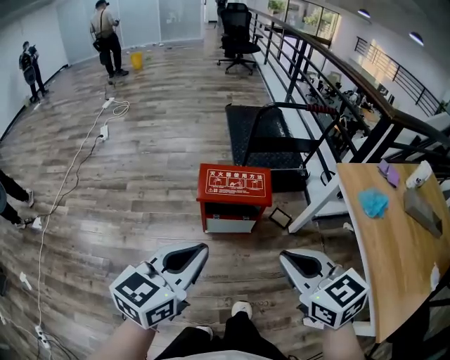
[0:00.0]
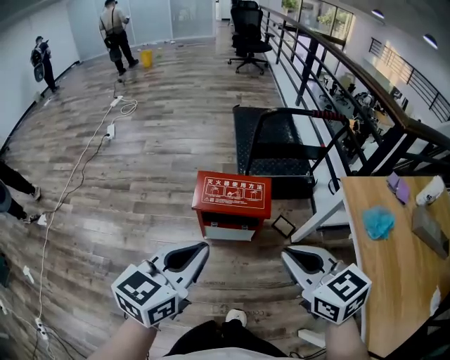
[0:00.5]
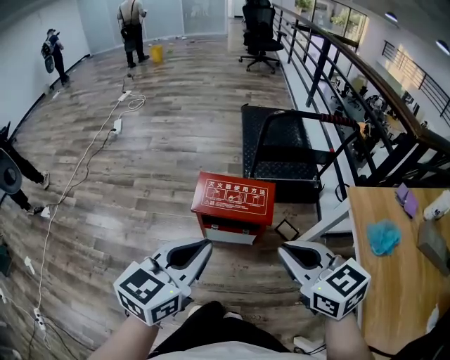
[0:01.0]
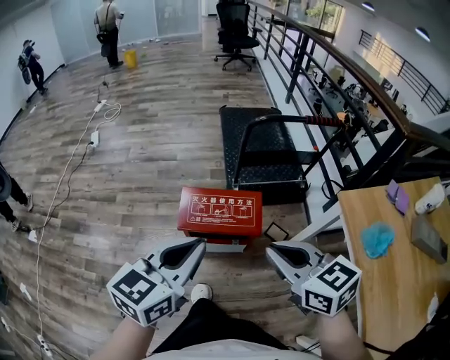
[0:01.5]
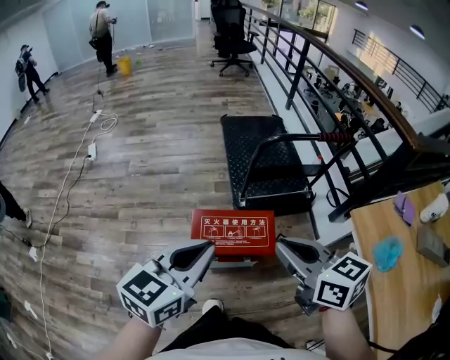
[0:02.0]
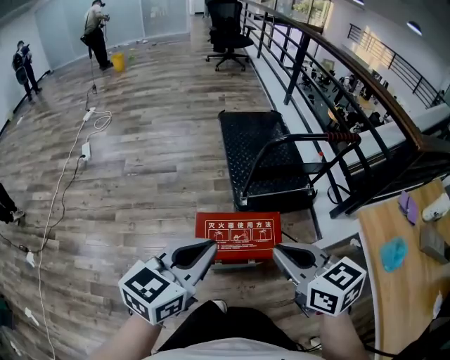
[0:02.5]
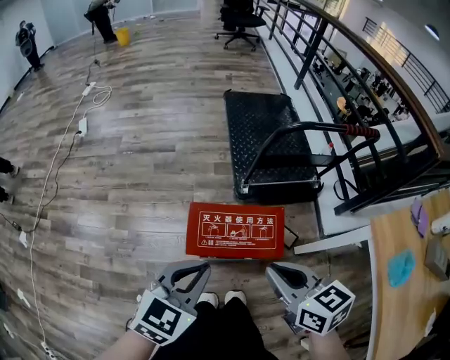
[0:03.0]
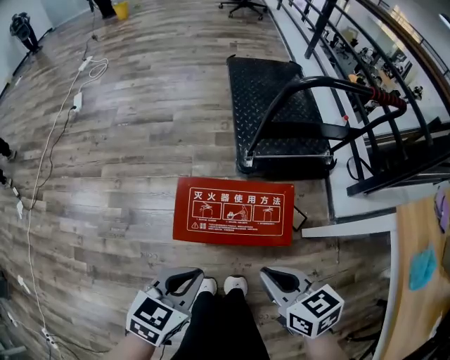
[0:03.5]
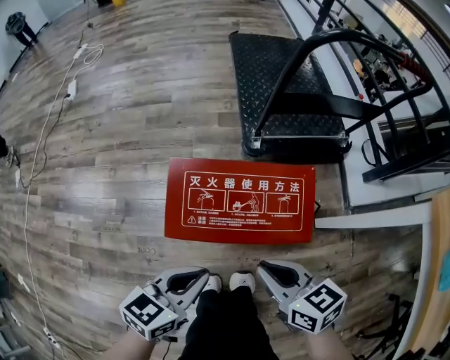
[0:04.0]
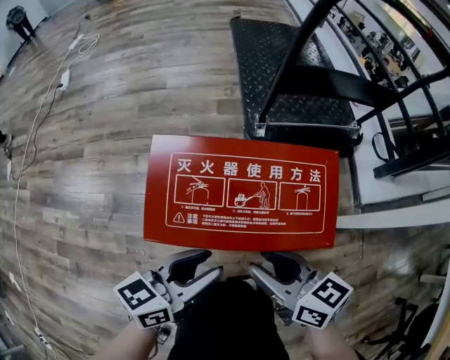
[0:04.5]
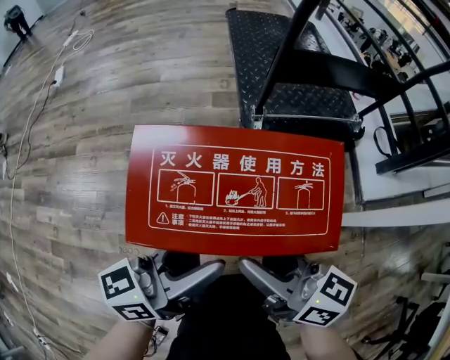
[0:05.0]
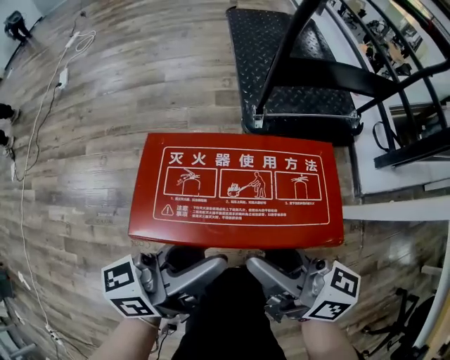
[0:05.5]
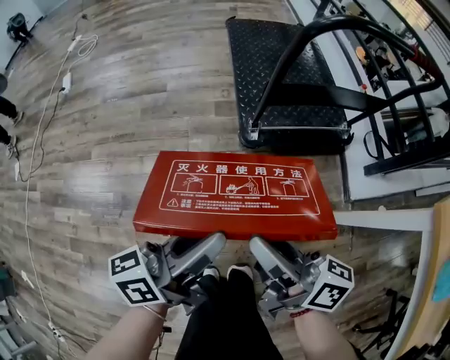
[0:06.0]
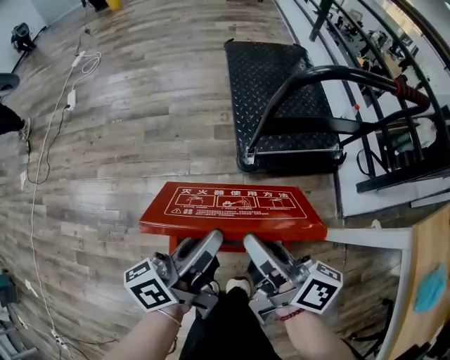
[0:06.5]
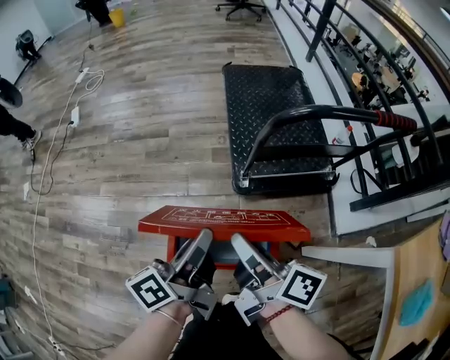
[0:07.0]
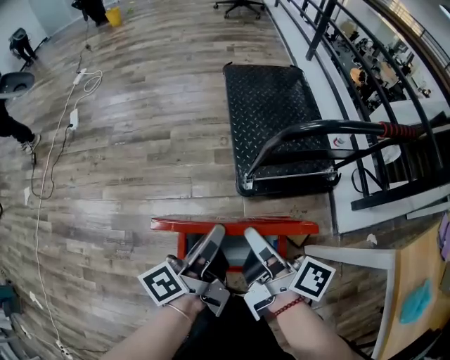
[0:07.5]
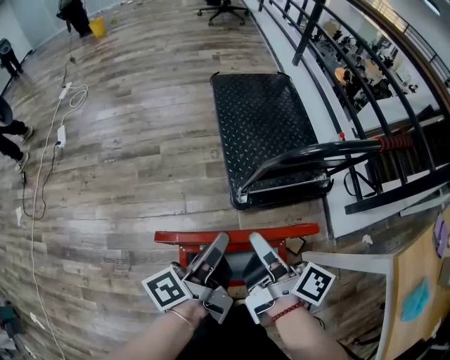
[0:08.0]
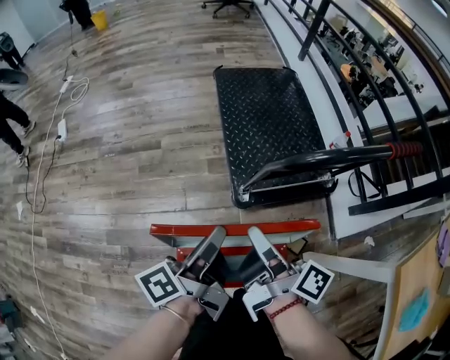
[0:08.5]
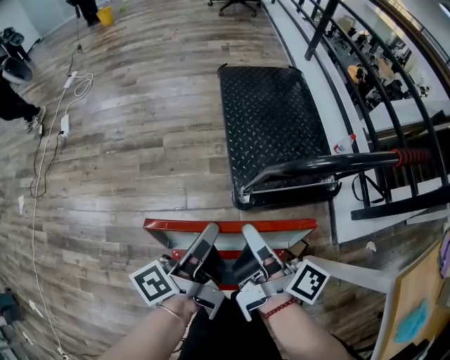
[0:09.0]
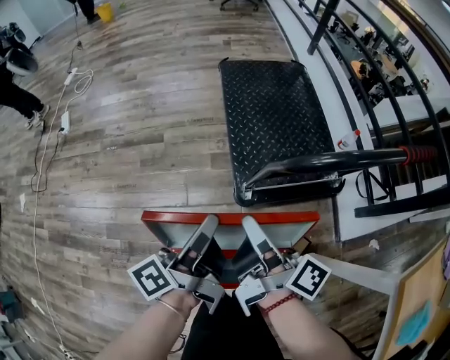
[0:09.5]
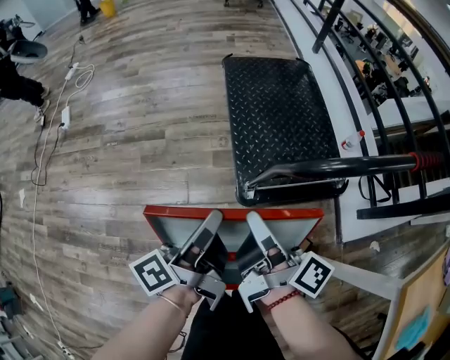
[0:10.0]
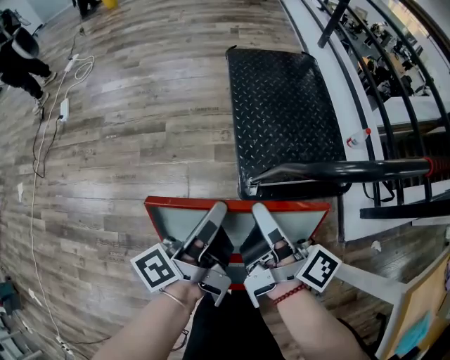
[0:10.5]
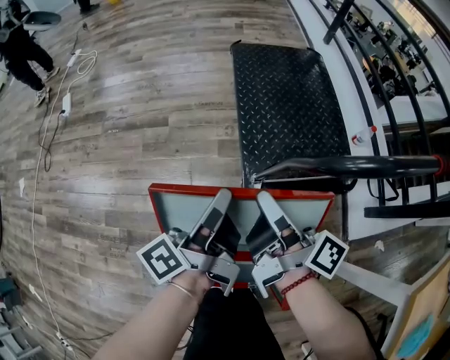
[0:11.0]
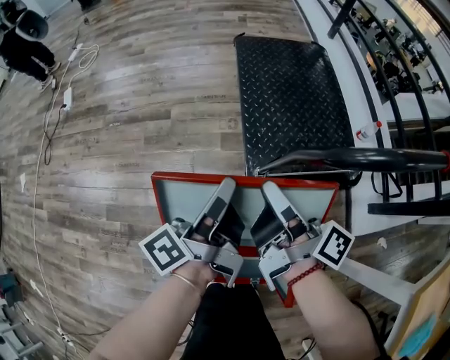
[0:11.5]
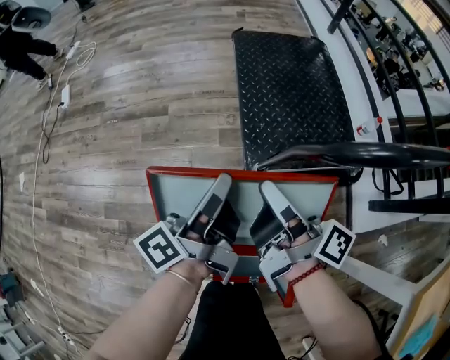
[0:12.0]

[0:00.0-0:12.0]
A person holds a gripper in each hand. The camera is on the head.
0:00.0 to 0:02.0: Both grippers travel together forward, some 25 cm.
0:02.0 to 0:04.0: Both grippers move downward, some 35 cm. The left gripper turns by about 20 degrees.
0:04.0 to 0:06.0: Both grippers move forward and upward, about 15 cm. The left gripper turns by roughly 40 degrees, and opens, then closes again, while the right gripper tips its fingers upward by approximately 30 degrees.
0:06.0 to 0:08.0: Both grippers move forward and upward, roughly 15 cm. The left gripper changes its angle by about 30 degrees; the right gripper changes its angle by approximately 30 degrees.
0:08.0 to 0:10.0: Both grippers travel together forward, about 10 cm.
0:10.0 to 0:12.0: The left gripper ends up some 5 cm from where it was. The right gripper ends up about 5 cm from where it was.

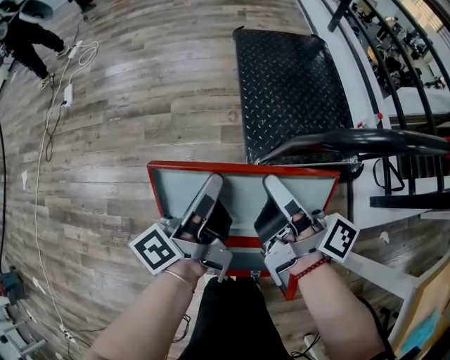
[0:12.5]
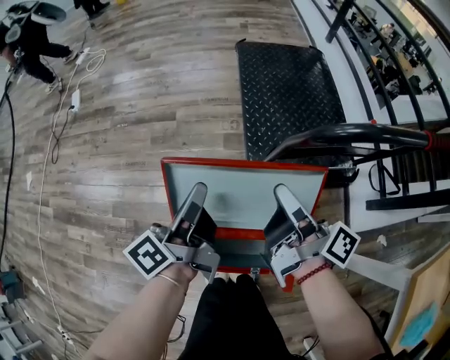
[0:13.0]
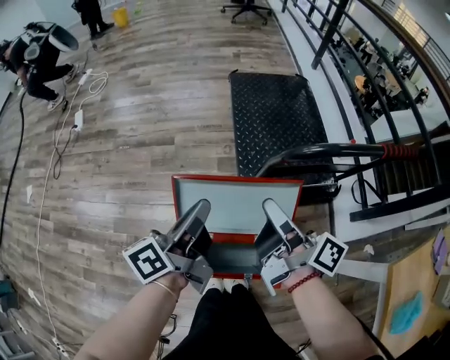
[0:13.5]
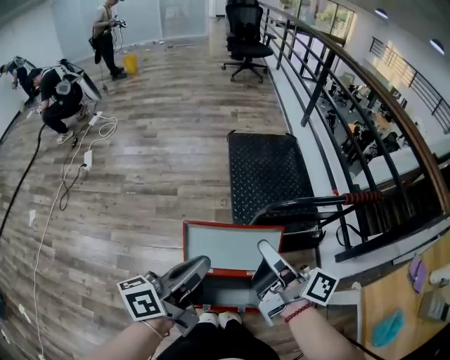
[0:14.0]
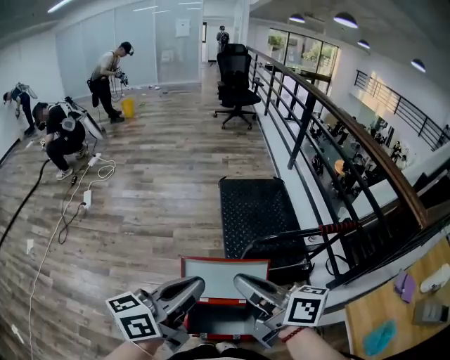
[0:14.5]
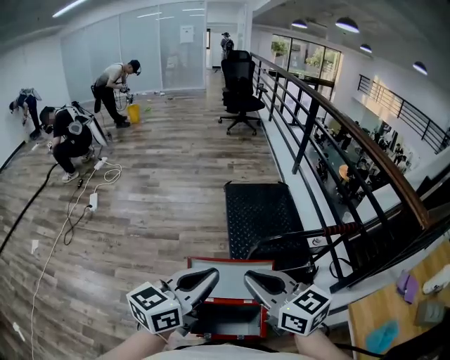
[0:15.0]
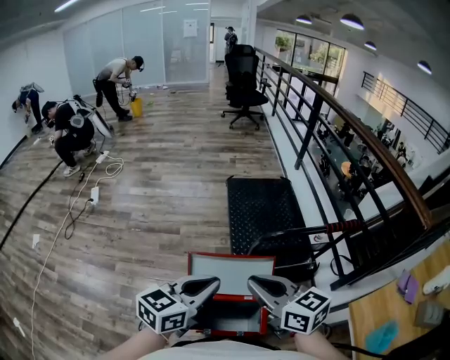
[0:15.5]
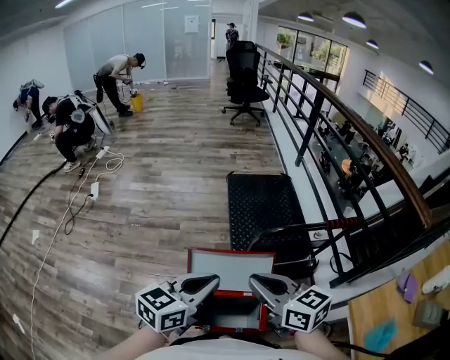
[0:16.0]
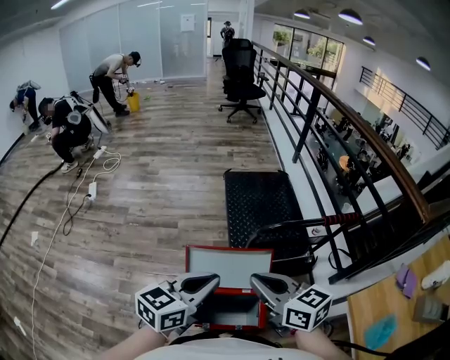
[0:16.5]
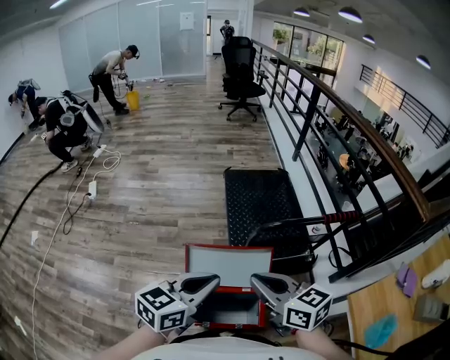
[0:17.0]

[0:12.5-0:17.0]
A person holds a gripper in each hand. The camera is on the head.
0:12.5 to 0:14.5: Both grippers travel together upward and backward, about 35 cm. The right gripper rotates approximately 40 degrees; the left gripper turns by approximately 40 degrees.
0:14.5 to 0:17.0: Both grippers move downward, roughly 5 cm. The left gripper rotates approximately 30 degrees. Meanwhile the right gripper turns by approximately 30 degrees.

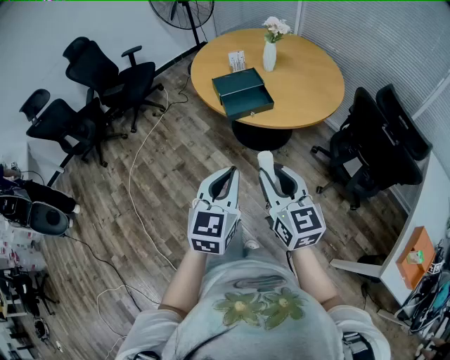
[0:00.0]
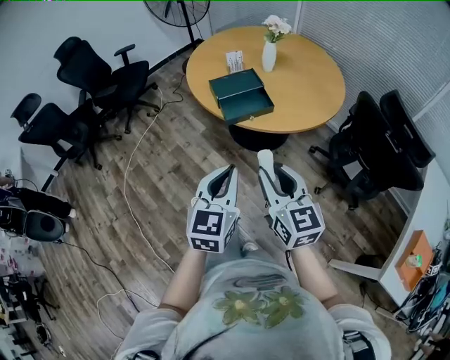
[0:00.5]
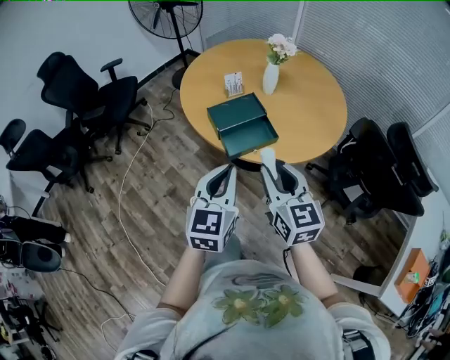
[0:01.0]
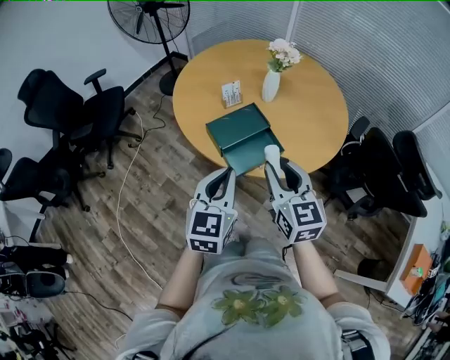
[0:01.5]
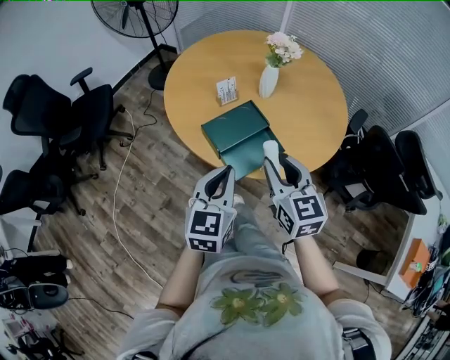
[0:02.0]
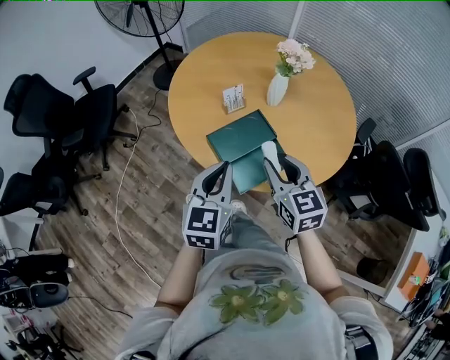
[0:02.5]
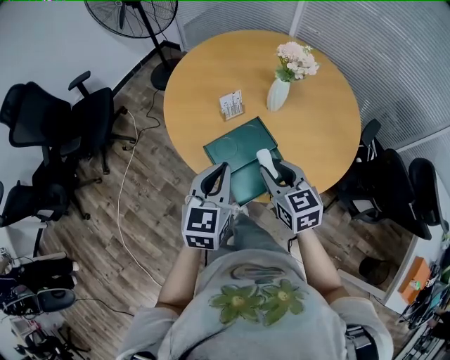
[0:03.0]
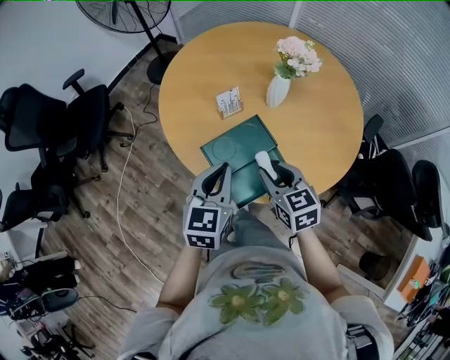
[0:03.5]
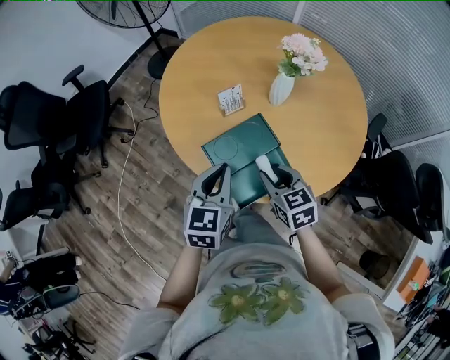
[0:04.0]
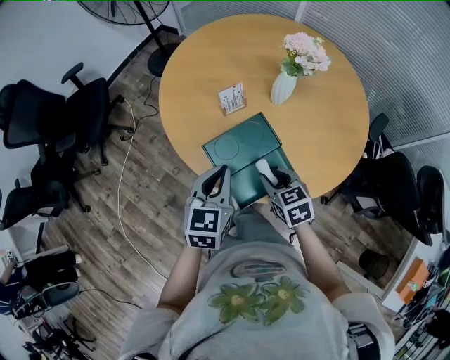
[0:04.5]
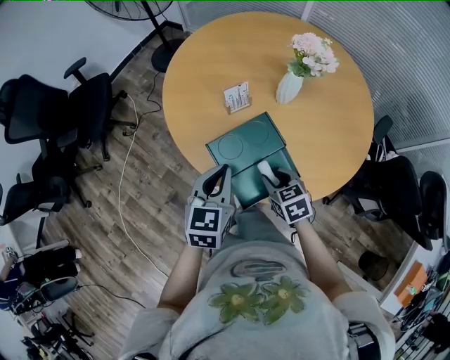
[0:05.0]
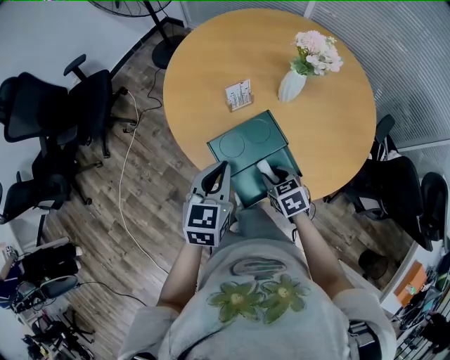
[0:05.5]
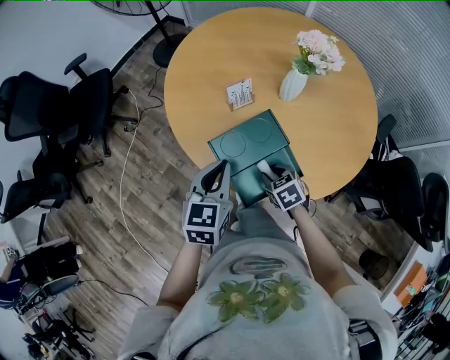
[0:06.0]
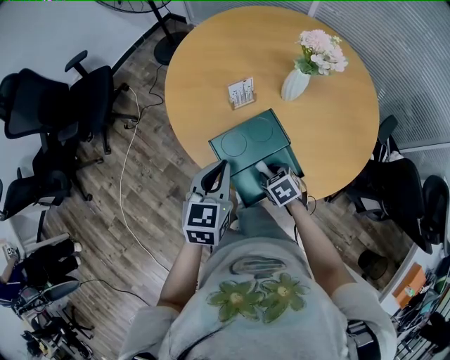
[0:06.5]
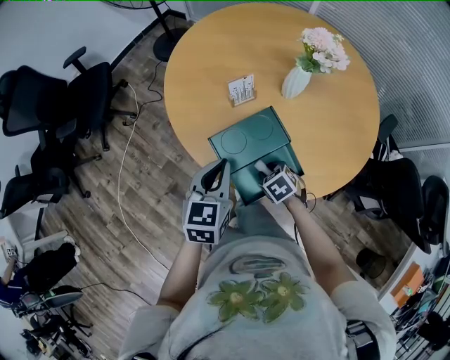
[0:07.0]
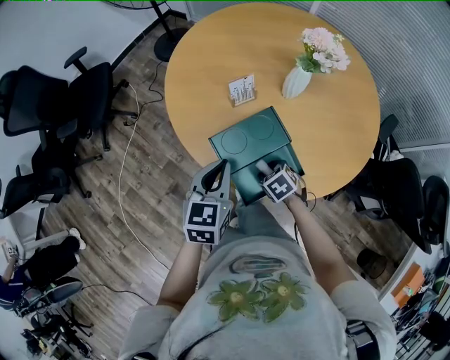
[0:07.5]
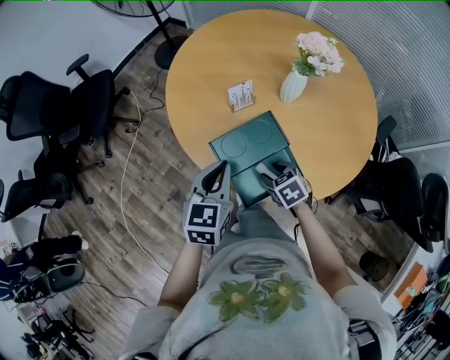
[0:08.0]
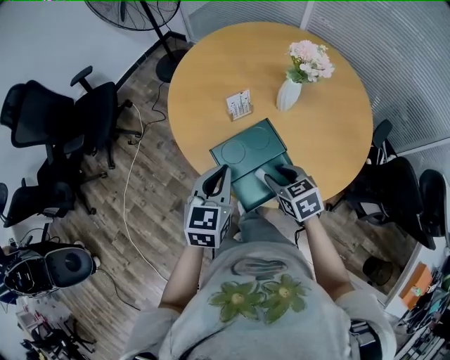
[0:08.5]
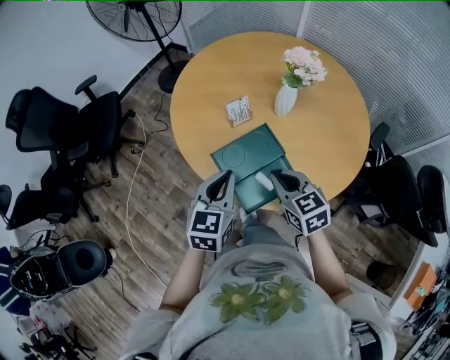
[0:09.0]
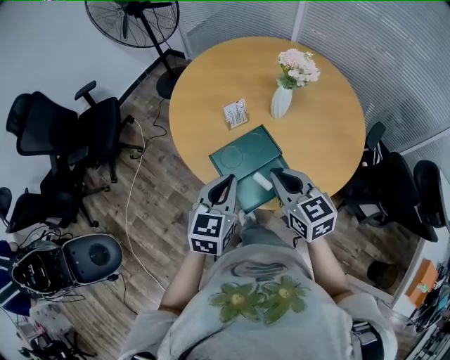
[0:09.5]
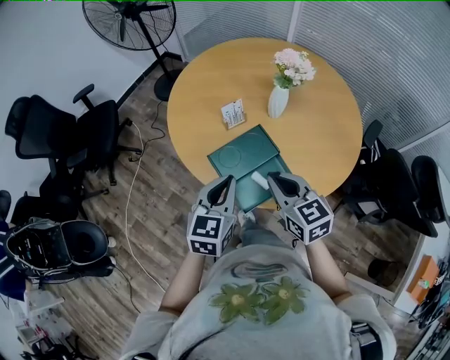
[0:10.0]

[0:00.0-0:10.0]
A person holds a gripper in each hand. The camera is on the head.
0:00.0 to 0:02.0: Both grippers are carried forward, some 40 cm.
0:02.0 to 0:04.0: The left gripper heads forward and downward, covering about 20 cm. Meanwhile the right gripper heads downward and forward, covering roughly 20 cm, and turns by roughly 30 degrees.
0:04.0 to 0:06.0: The right gripper moves downward, roughly 15 cm, and changes its angle by about 20 degrees.
0:06.0 to 0:08.0: The grippers make only small movements.
0:08.0 to 0:10.0: The right gripper travels upward by about 25 cm, tilts its fingers about 40 degrees upward, and closes its fingers. Meanwhile the left gripper moves backward and upward, roughly 10 cm.
